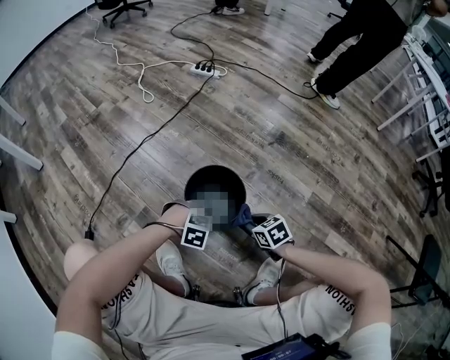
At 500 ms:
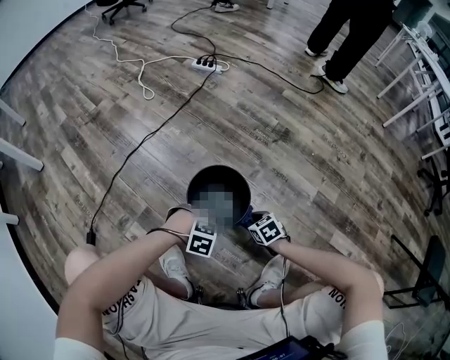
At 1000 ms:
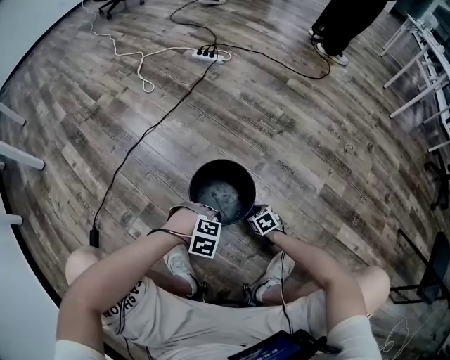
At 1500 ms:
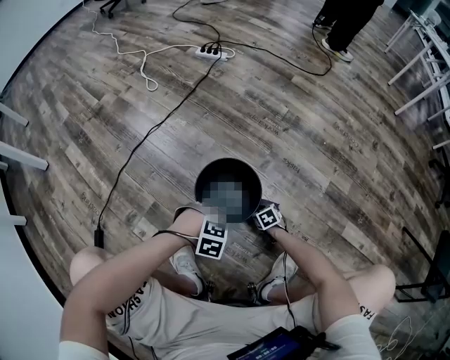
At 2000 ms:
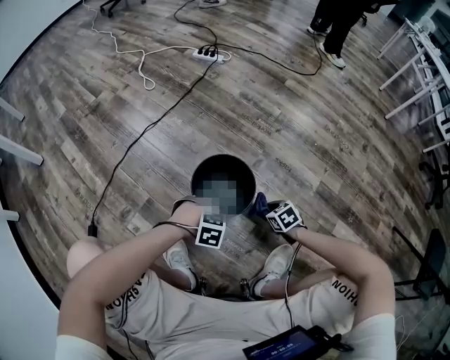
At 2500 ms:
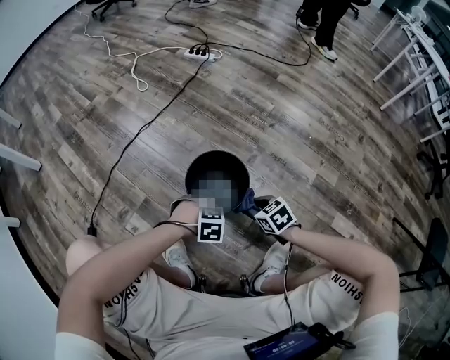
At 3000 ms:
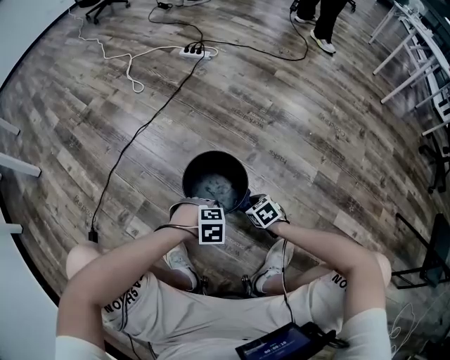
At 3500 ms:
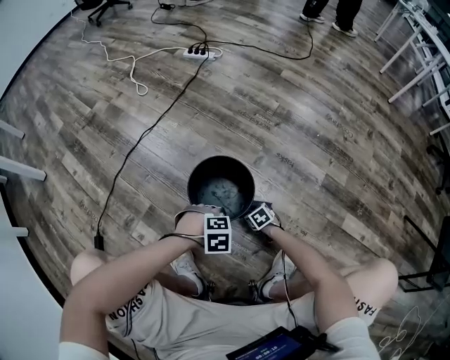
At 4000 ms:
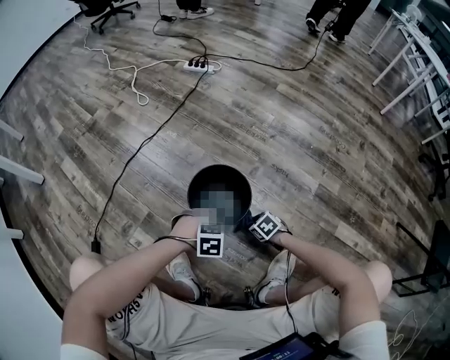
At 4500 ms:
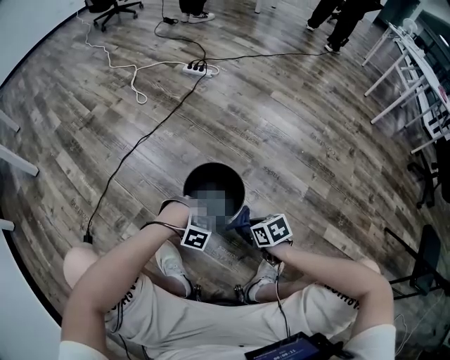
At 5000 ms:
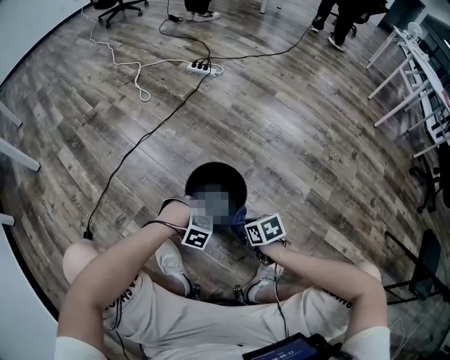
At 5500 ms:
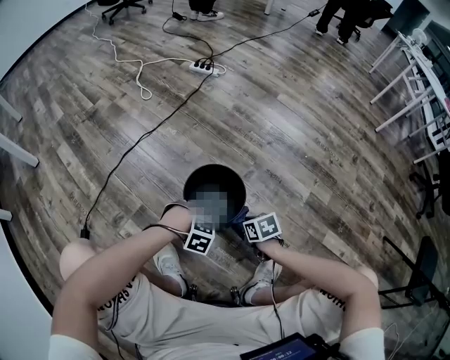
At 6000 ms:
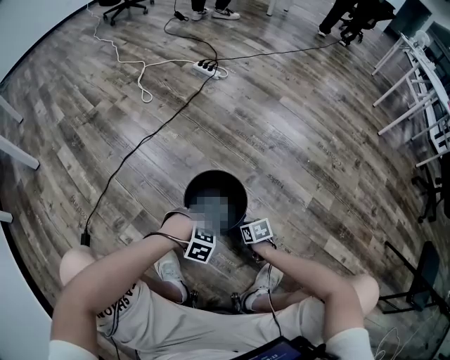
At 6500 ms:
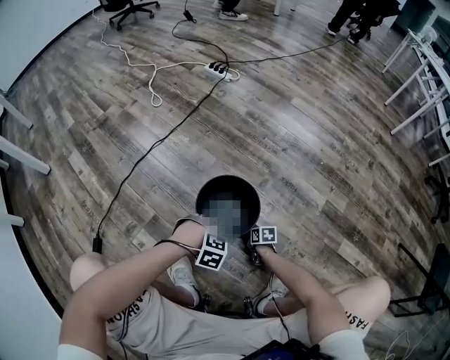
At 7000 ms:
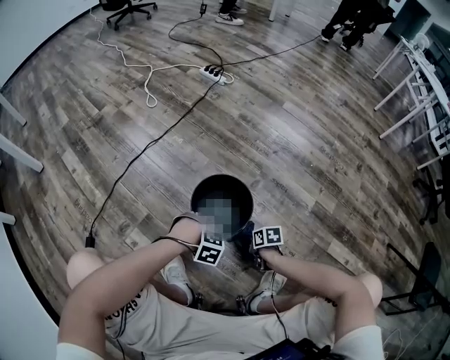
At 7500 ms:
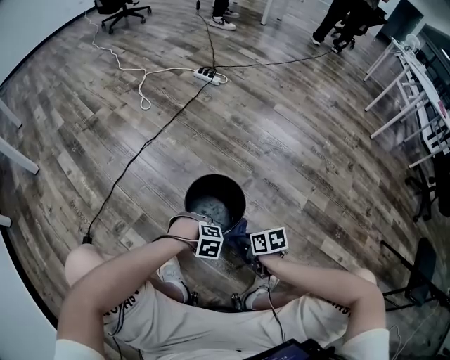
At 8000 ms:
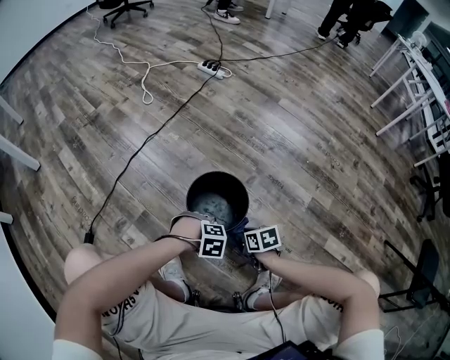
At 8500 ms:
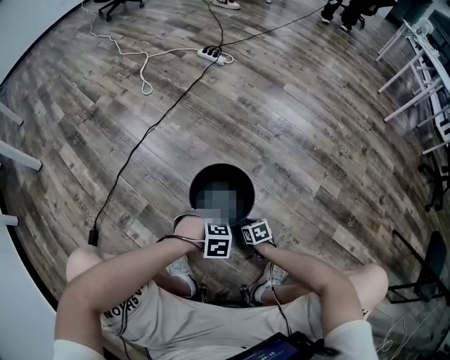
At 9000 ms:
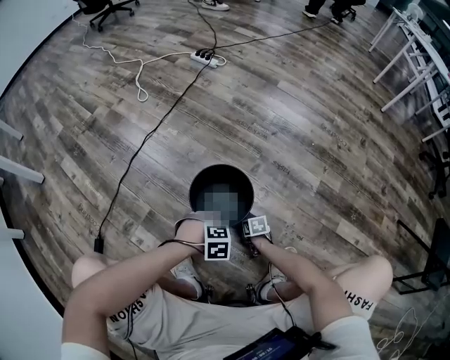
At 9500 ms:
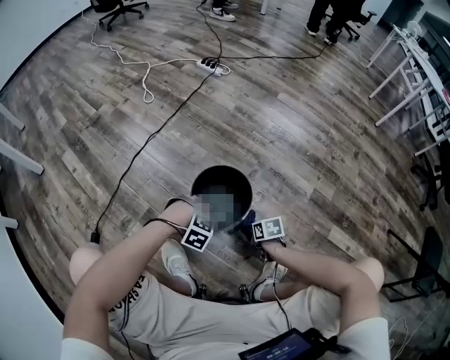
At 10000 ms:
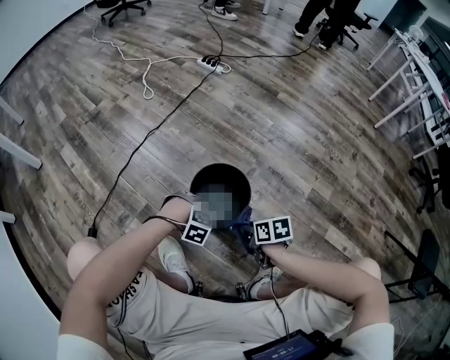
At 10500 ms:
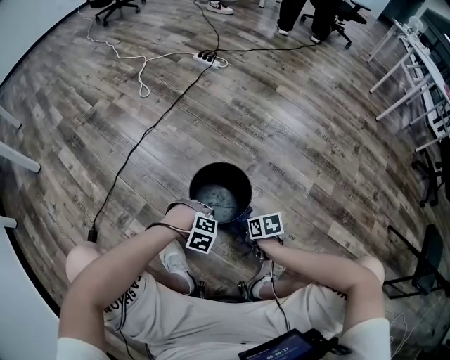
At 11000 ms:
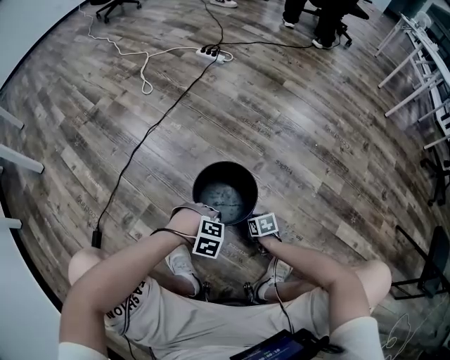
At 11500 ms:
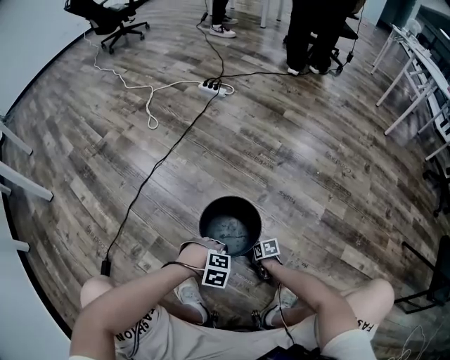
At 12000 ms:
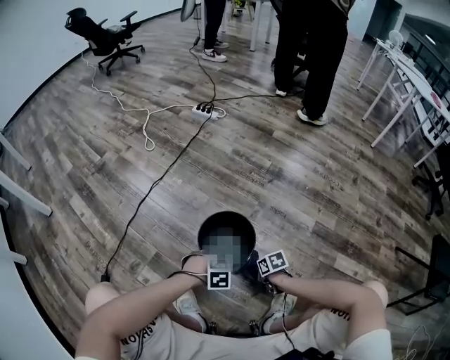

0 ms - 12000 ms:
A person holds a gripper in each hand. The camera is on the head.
0 ms - 2000 ms: The right gripper travels downward by approximately 10 cm.
2000 ms - 4000 ms: The right gripper swings up and down, approximately 20 cm each way, with 2 reversals.
4000 ms - 6000 ms: The right gripper goes upward and returns, some 15 cm each way, and changes its angle by roughly 20 degrees.
6000 ms - 8000 ms: The right gripper goes up and down, some 20 cm each way, reversing 2 times.
8000 ms - 10000 ms: The right gripper moves approximately 15 cm downward and comes back.
10000 ms - 12000 ms: The right gripper moves downward, approximately 10 cm.

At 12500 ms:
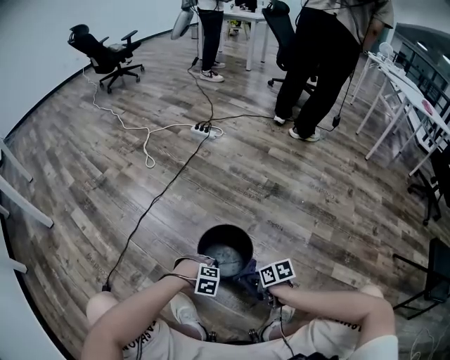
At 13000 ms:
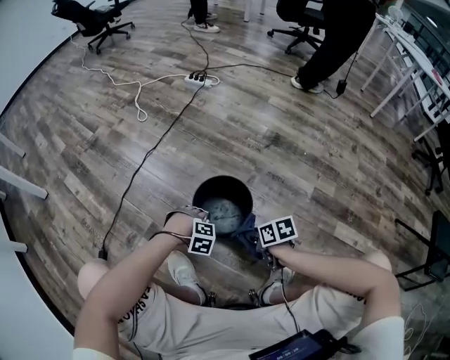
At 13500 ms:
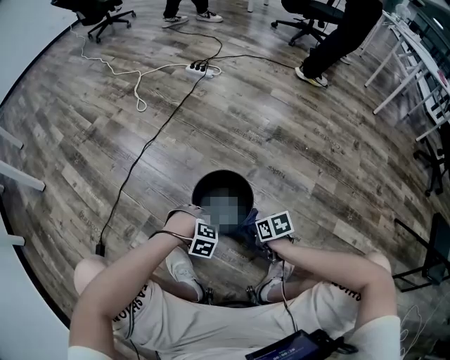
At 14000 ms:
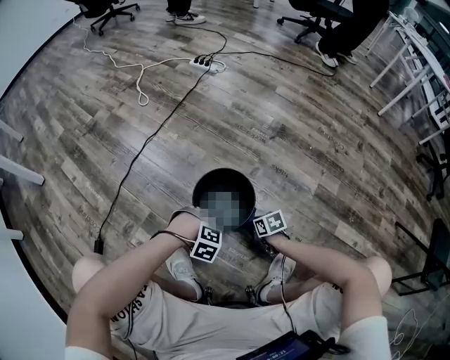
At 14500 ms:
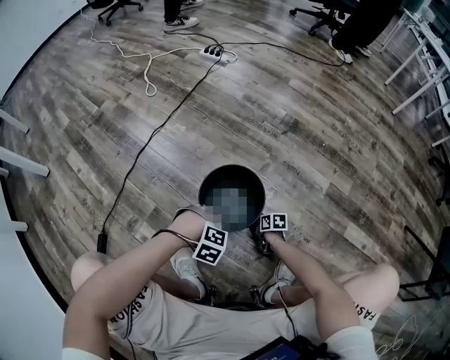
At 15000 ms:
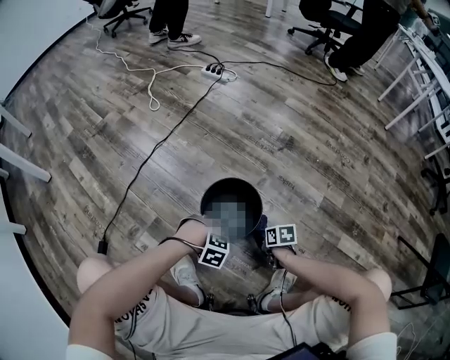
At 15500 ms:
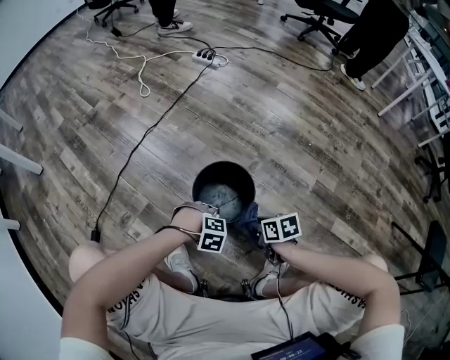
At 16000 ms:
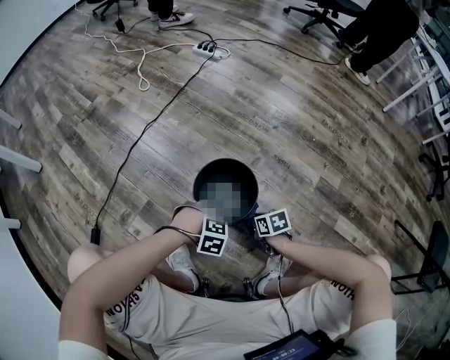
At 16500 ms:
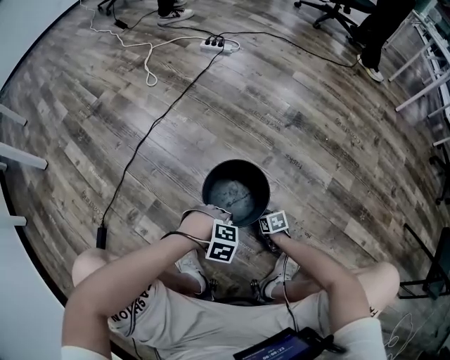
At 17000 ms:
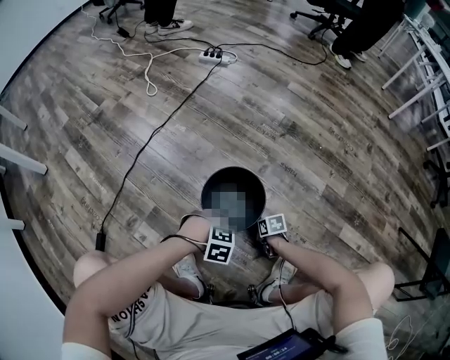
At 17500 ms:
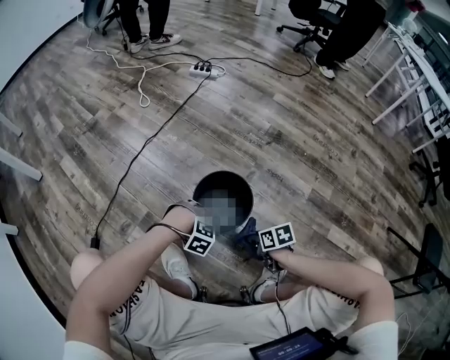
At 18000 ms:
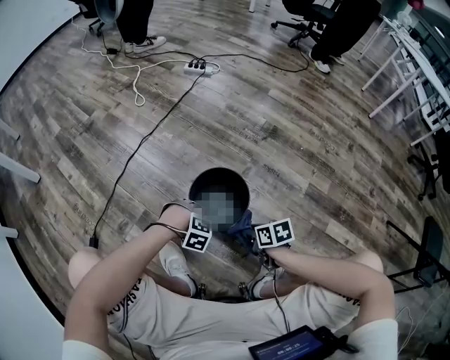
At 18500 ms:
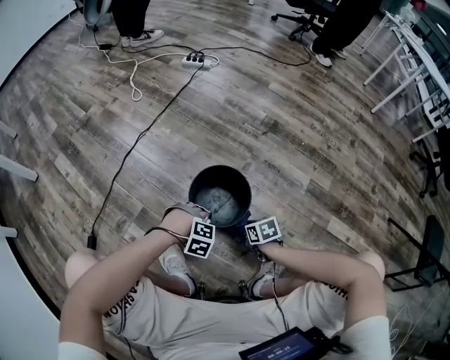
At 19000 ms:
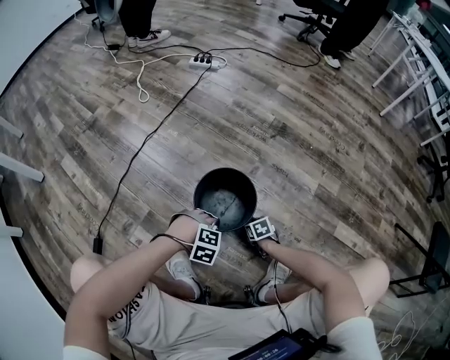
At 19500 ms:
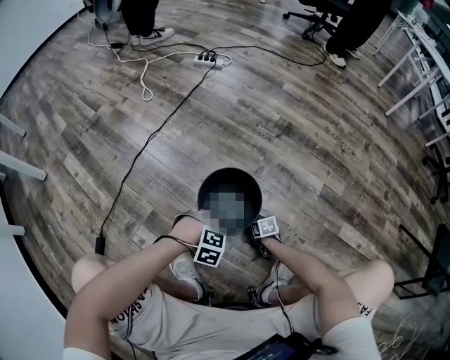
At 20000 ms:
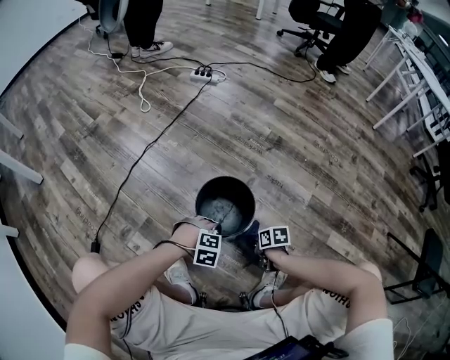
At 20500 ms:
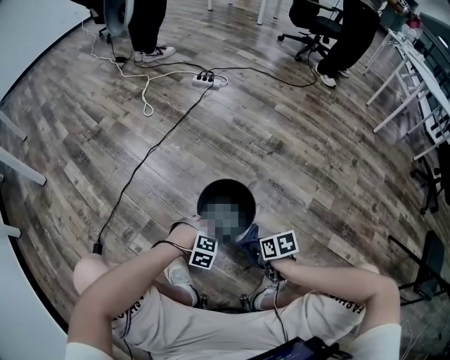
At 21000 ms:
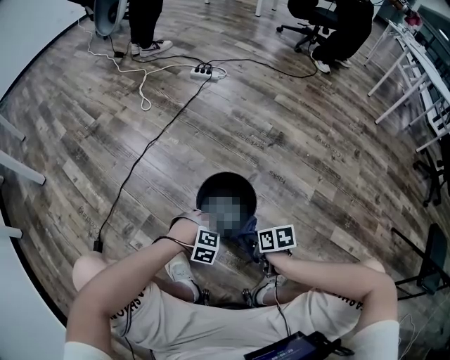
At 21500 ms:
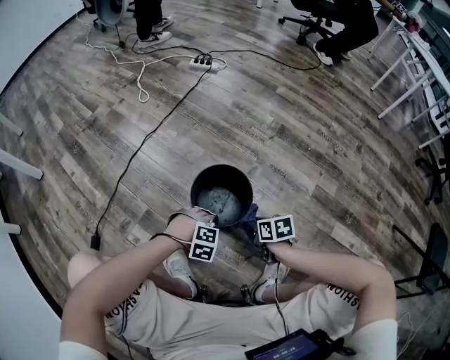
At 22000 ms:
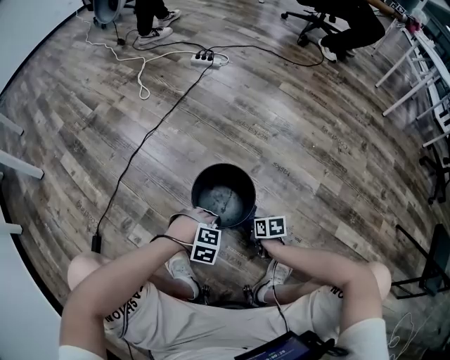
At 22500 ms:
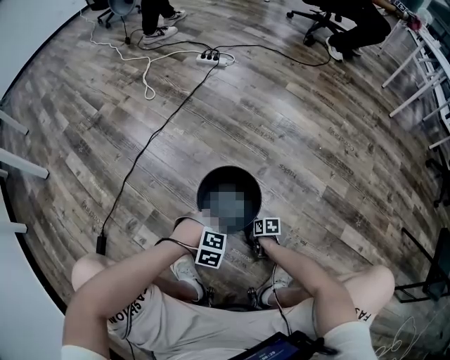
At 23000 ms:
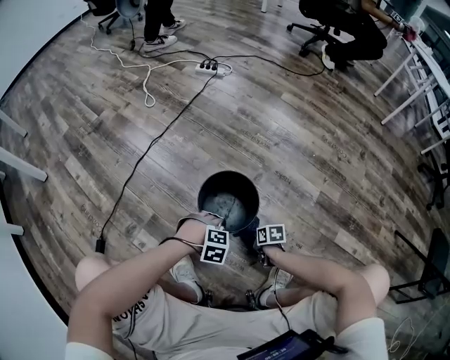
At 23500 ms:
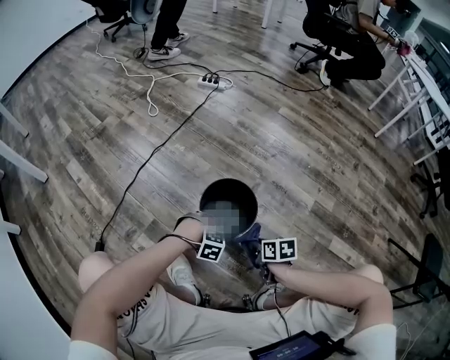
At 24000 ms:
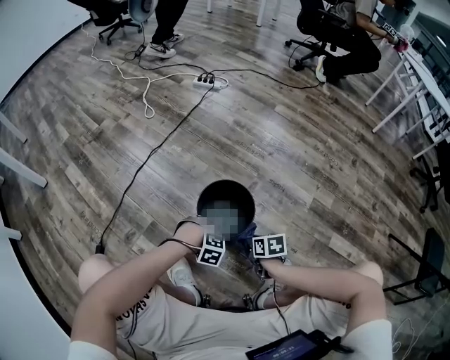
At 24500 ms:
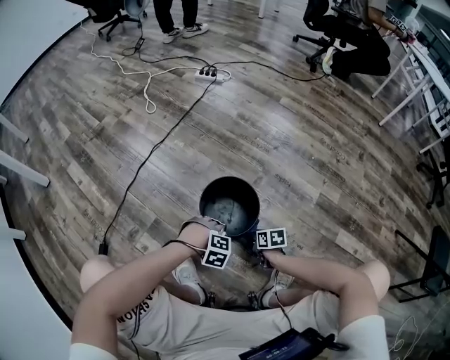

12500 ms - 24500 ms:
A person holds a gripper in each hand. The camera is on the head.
12500 ms - 14500 ms: The right gripper heads downward, covering about 25 cm.
14500 ms - 16500 ms: The right gripper travels upward and back again, about 25 cm each way, and rotates approximately 20 degrees.
16500 ms - 18500 ms: The right gripper moves upward, roughly 15 cm.
18500 ms - 20500 ms: The right gripper is displaced upward by some 10 cm.
20500 ms - 22500 ms: The right gripper shifts approximately 25 cm downward.
22500 ms - 24500 ms: The right gripper moves upward, roughly 10 cm.

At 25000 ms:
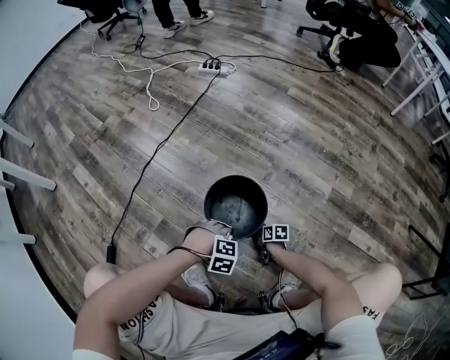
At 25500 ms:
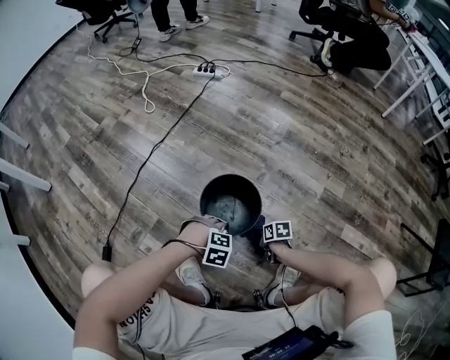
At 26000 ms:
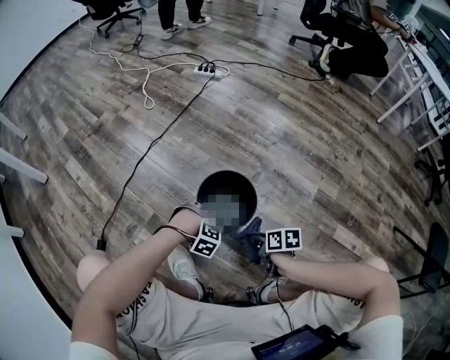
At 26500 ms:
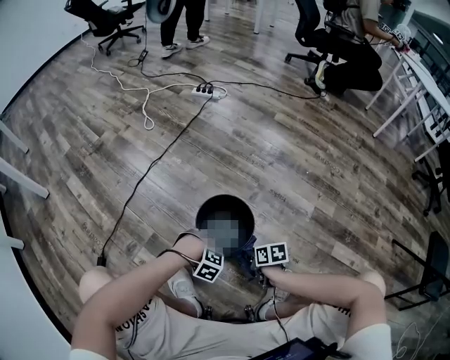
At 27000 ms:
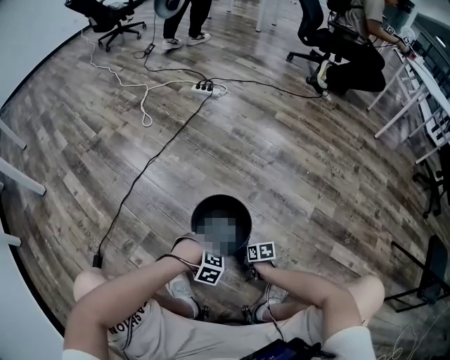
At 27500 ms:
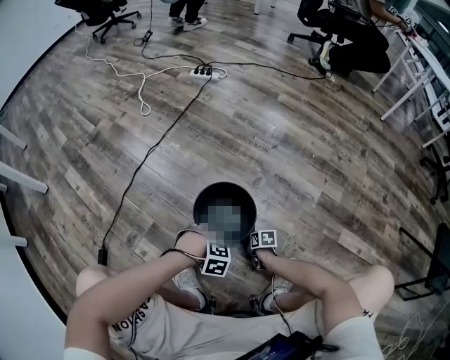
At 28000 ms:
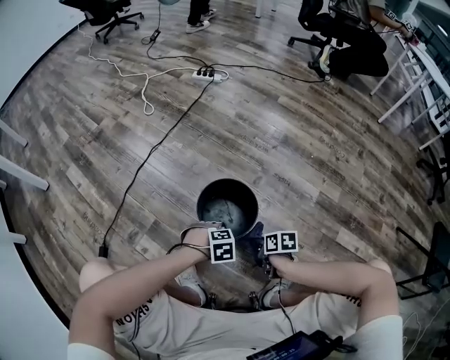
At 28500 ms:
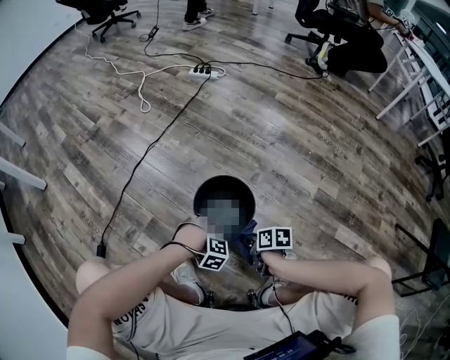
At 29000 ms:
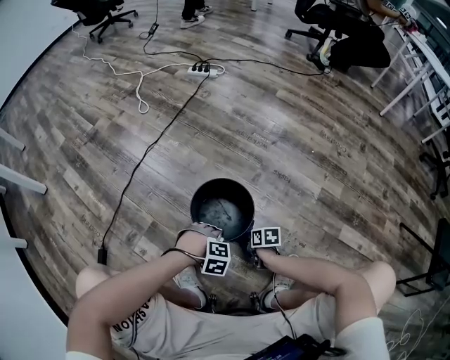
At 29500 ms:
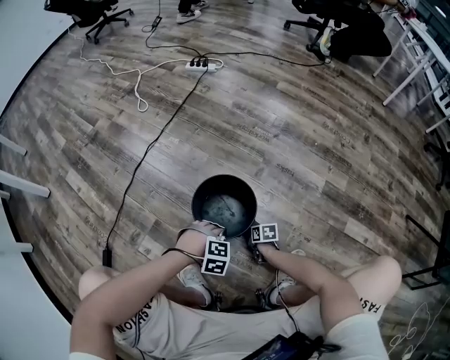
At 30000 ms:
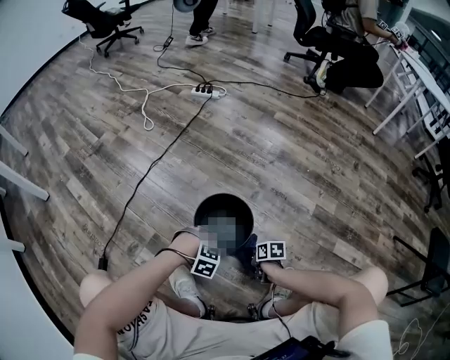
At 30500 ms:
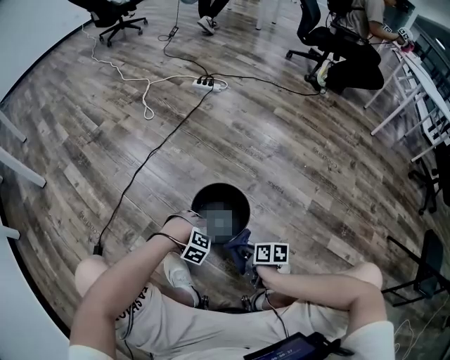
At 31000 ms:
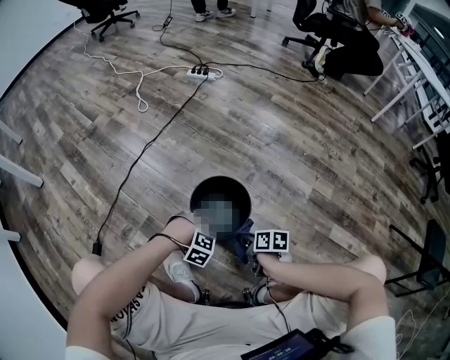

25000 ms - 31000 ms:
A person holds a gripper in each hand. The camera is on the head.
25000 ms - 27000 ms: The right gripper travels upward and back again, some 25 cm each way.
27000 ms - 29000 ms: The right gripper swings up and down, some 20 cm each way, with 2 reversals.
29000 ms - 31000 ms: The right gripper heads upward, covering approximately 10 cm.
